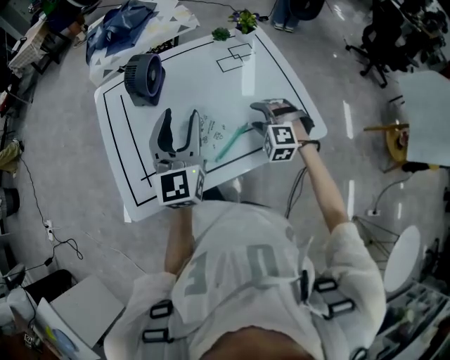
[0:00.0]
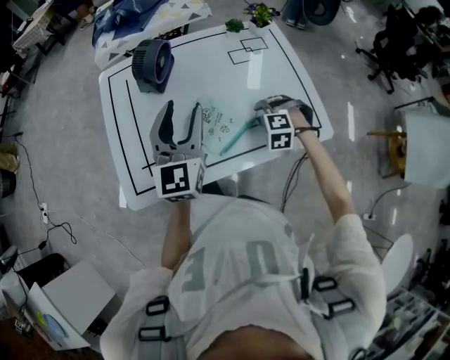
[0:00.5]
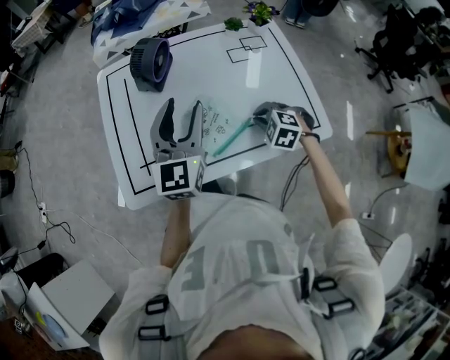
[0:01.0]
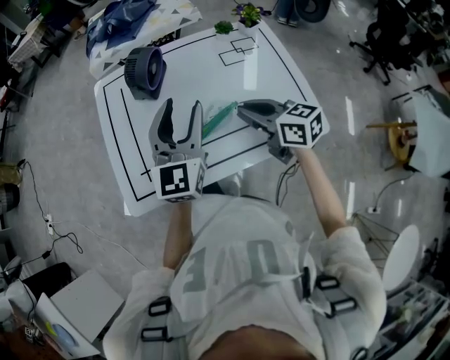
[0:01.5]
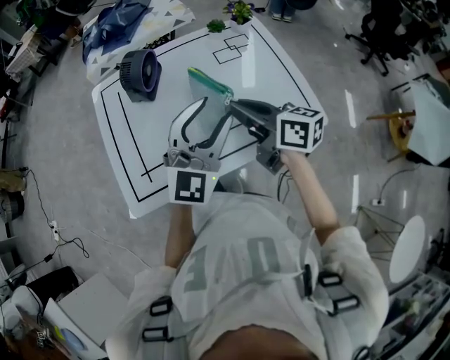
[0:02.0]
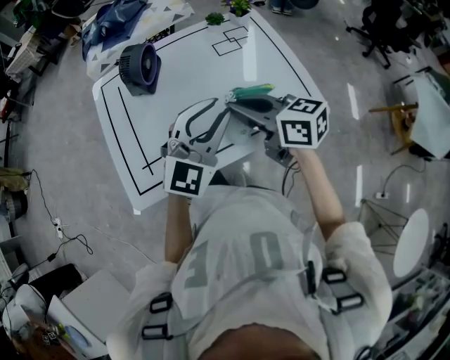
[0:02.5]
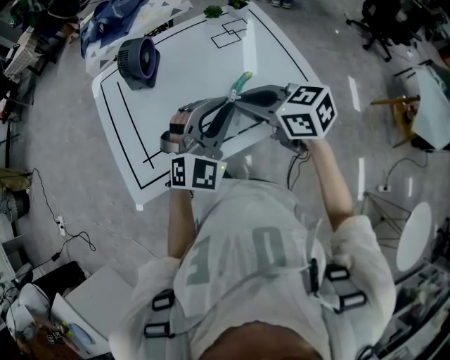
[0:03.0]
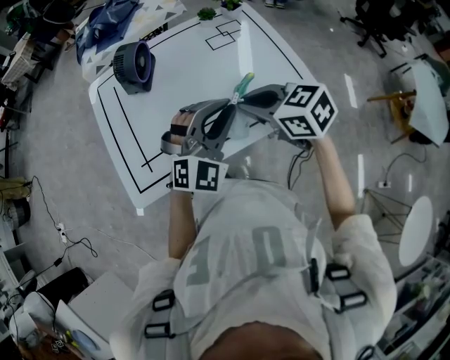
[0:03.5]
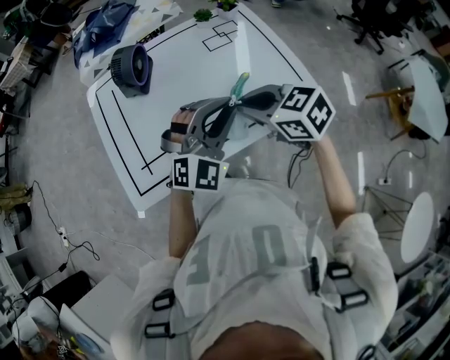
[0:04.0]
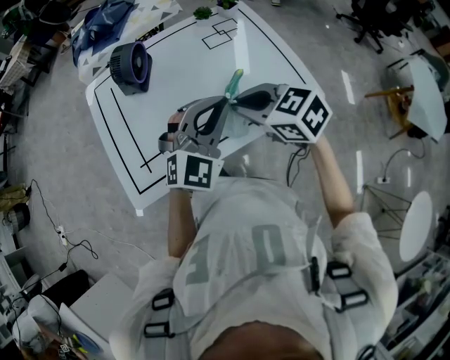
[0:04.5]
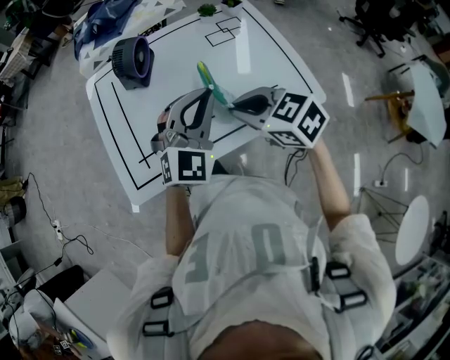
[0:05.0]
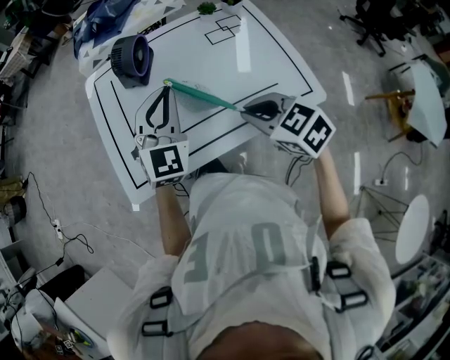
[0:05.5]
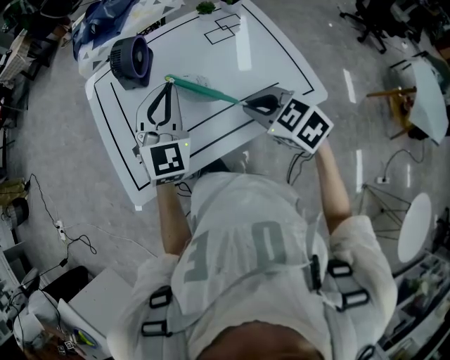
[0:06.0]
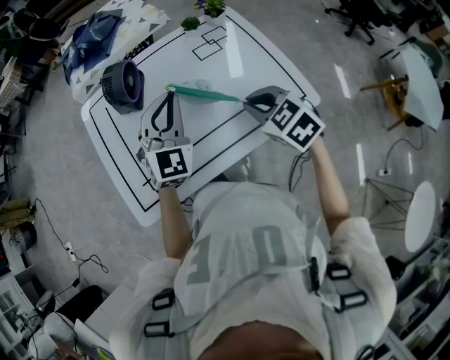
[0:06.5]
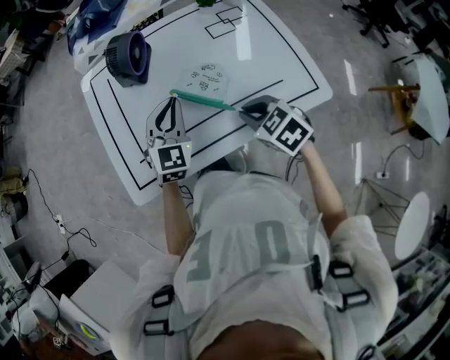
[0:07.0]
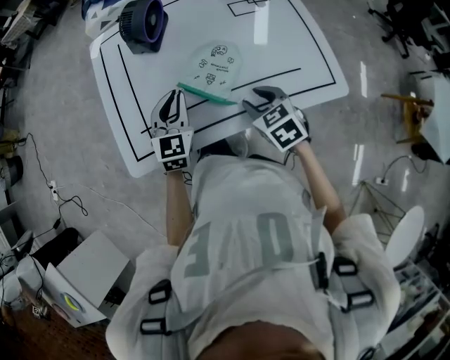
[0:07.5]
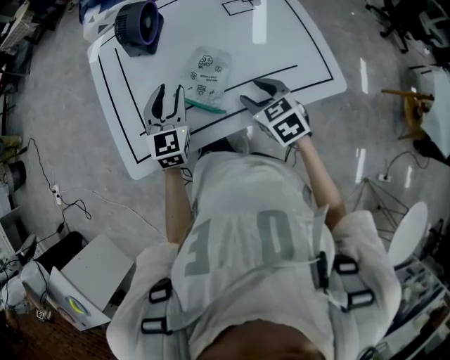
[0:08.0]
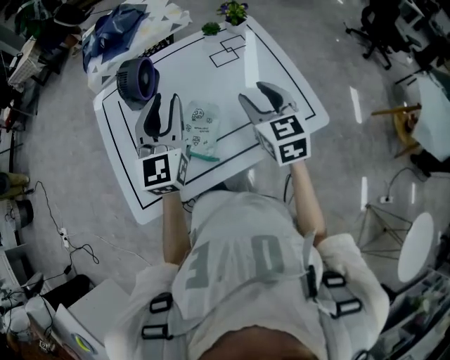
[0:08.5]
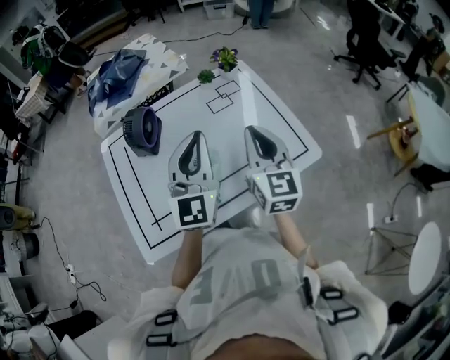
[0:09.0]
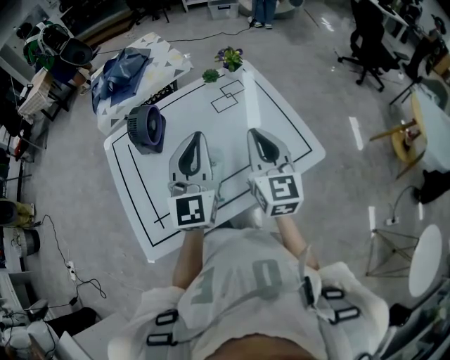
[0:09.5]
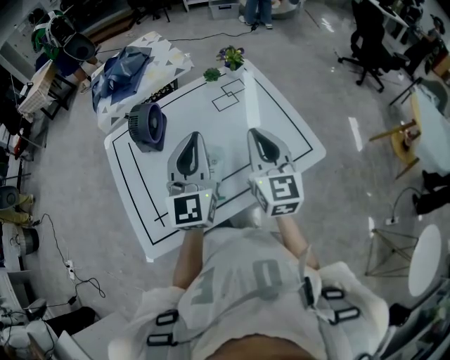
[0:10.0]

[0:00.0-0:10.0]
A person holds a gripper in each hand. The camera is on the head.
0:00.0 to 0:02.0: The right gripper shifts approximately 20 cm upward and to the left, rotates around the line of its fingers by roughly 90 degrees, clockwise from behind, and closes up; the left gripper travels to the right by approximately 10 cm, and turns by about 30 degrees.
0:02.0 to 0:04.0: The right gripper shifts by approximately 5 cm, and changes its angle by approximately 40 degrees; the left gripper shifts some 5 cm downward, rotates some 30 degrees, and closes.
0:04.0 to 0:06.0: The left gripper shifts about 15 cm to the left and forward, and turns by about 30 degrees.
0:06.0 to 0:08.0: Both grippers move downward, approximately 10 cm. The left gripper swivels about 20 degrees, and opens its fingers; the right gripper opens.
0:08.0 to 0:10.0: The left gripper shifts approximately 20 cm upward and to the right, swivels about 30 degrees, and closes up. The right gripper shifts about 20 cm upward, tilts its fingers about 40 degrees upward, and closes its fingers.

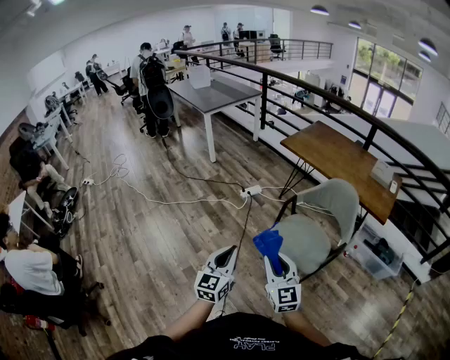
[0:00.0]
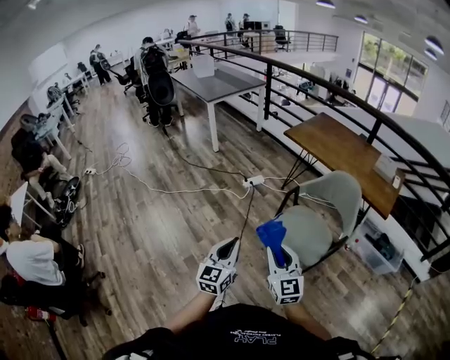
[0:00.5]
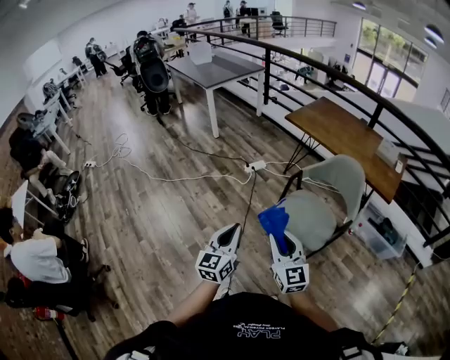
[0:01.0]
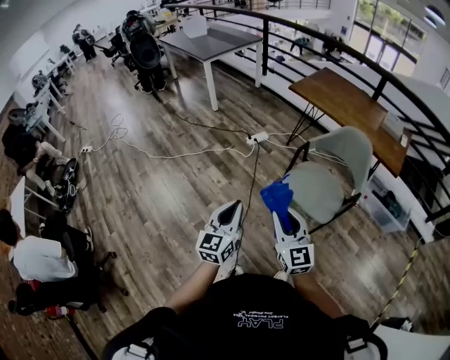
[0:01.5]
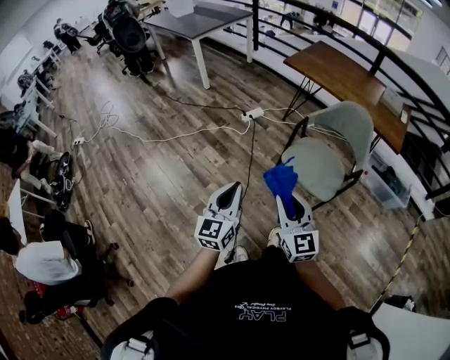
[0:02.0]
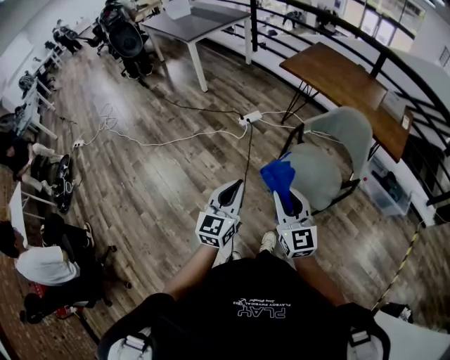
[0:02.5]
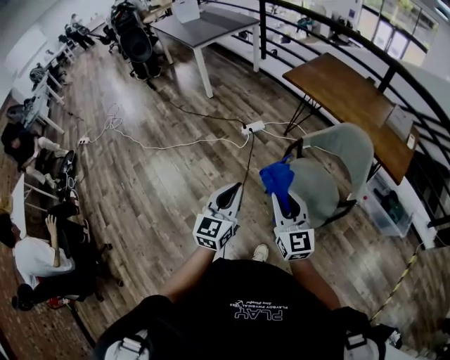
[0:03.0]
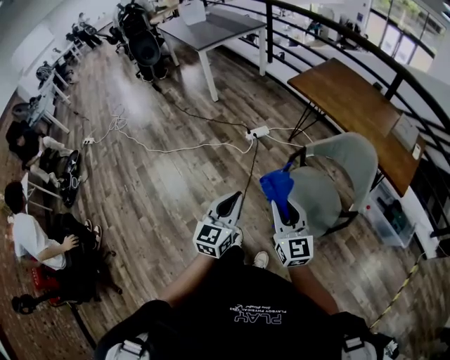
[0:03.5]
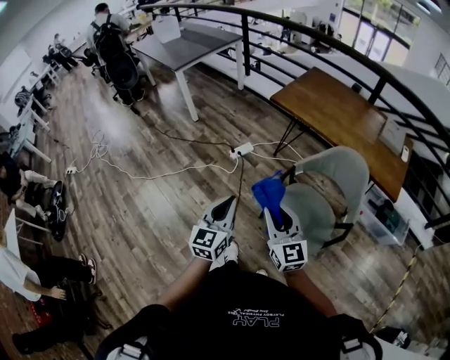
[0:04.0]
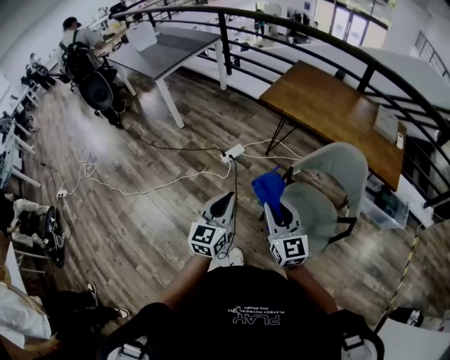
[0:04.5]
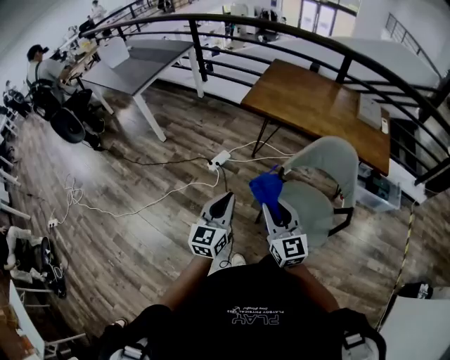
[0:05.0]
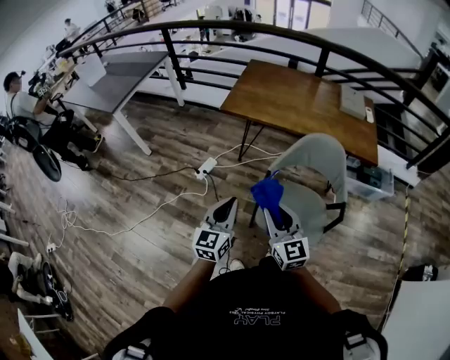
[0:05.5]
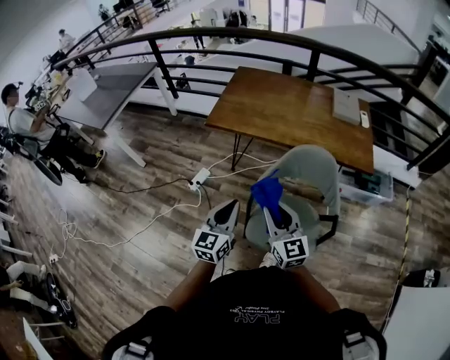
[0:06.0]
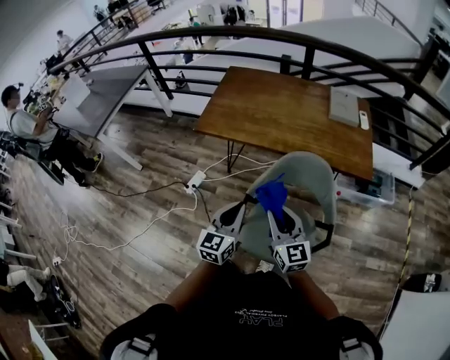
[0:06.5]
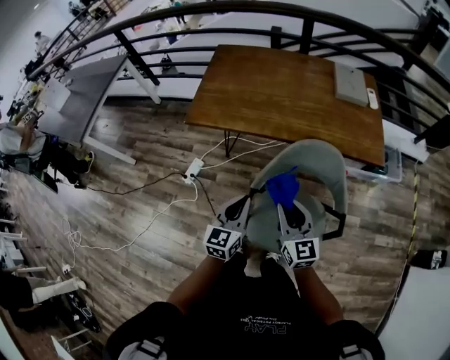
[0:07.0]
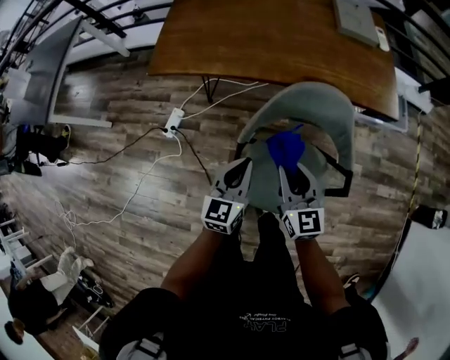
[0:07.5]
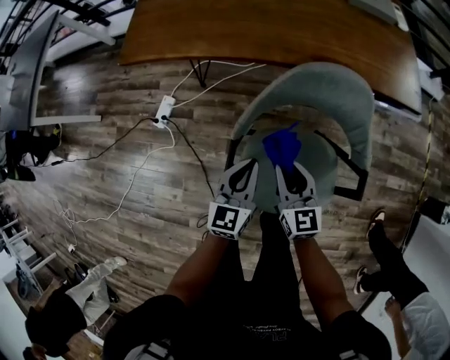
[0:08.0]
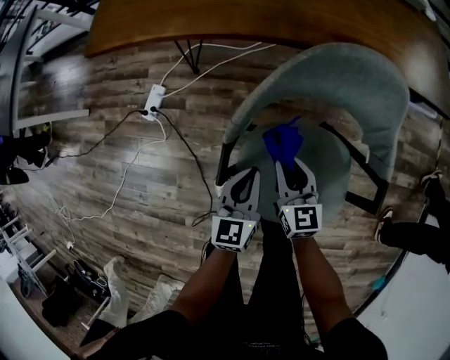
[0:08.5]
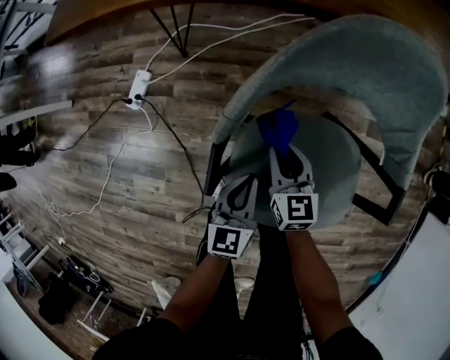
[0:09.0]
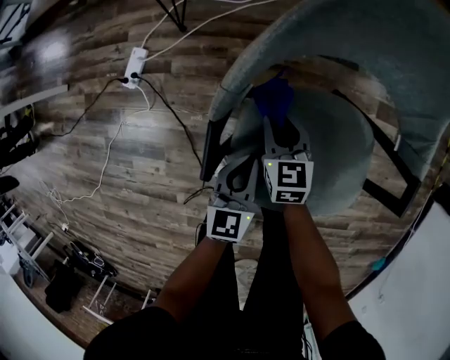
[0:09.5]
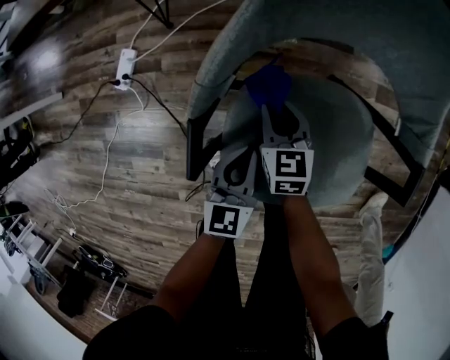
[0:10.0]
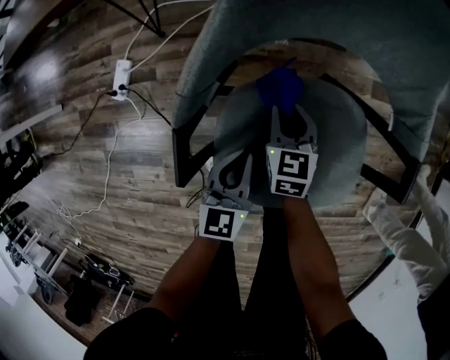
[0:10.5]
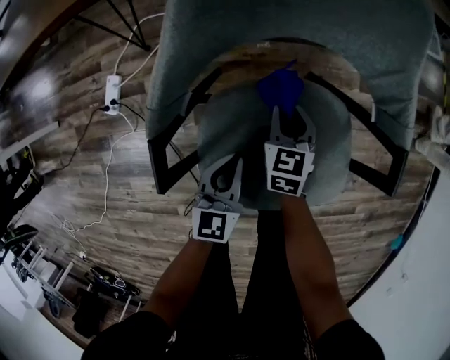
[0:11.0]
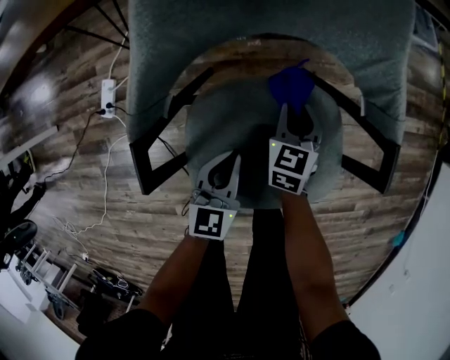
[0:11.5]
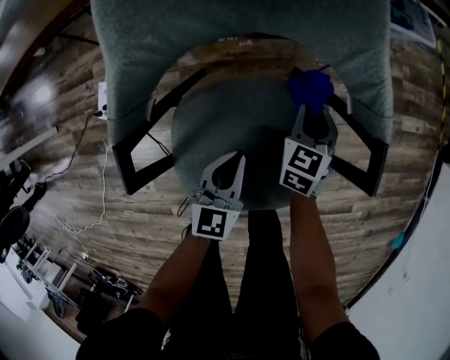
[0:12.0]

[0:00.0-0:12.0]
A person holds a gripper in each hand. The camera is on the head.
0:00.0 to 0:02.0: The grippers both shift to the left by about 5 cm.
0:02.0 to 0:04.0: Both grippers move forward, about 25 cm.
0:04.0 to 0:06.0: Both grippers move forward and to the right, some 20 cm. The left gripper turns by roughly 30 degrees; the right gripper rotates some 20 degrees.
0:06.0 to 0:08.0: The left gripper moves downward, forward and to the right, some 35 cm, while the right gripper goes roughly 30 cm downward and forward, and swivels roughly 20 degrees.
0:08.0 to 0:10.0: Both grippers move downward, some 25 cm.
0:10.0 to 0:12.0: The left gripper ends up some 15 cm from where it was. Meanwhile the right gripper changes place by roughly 25 cm, and changes its angle by about 30 degrees.

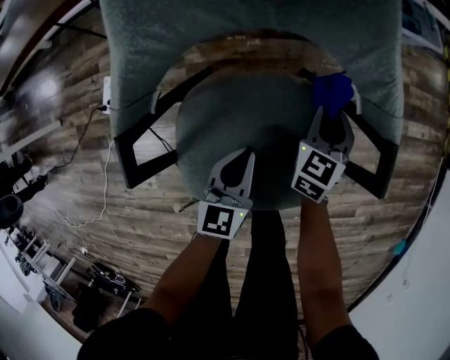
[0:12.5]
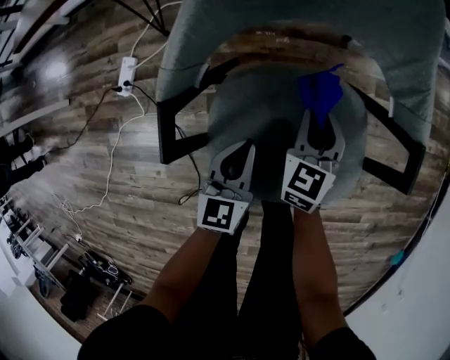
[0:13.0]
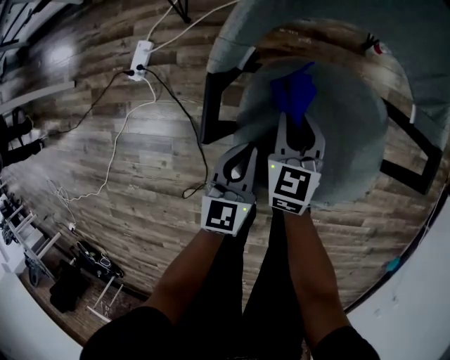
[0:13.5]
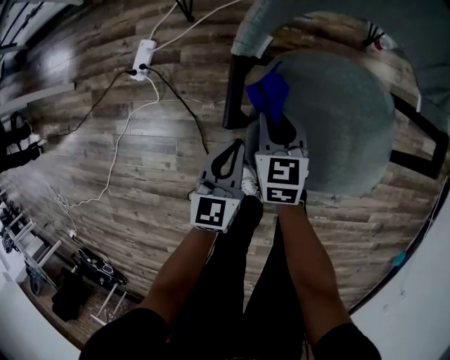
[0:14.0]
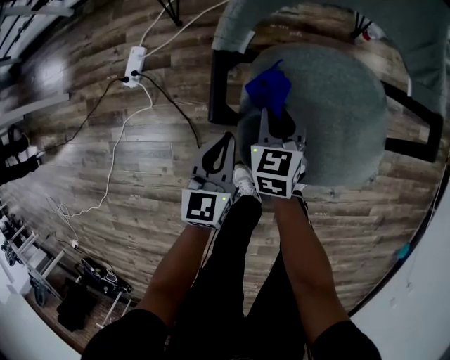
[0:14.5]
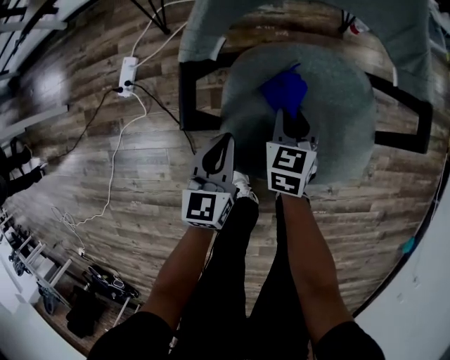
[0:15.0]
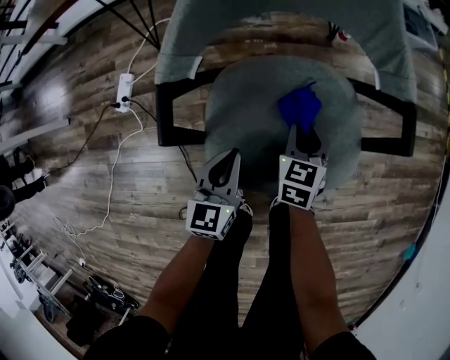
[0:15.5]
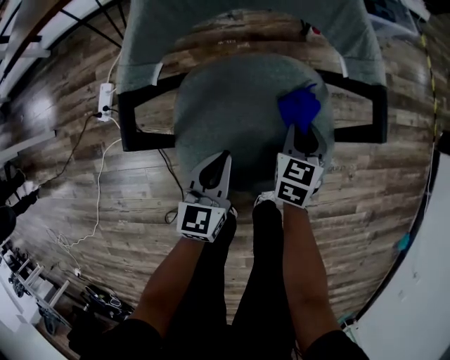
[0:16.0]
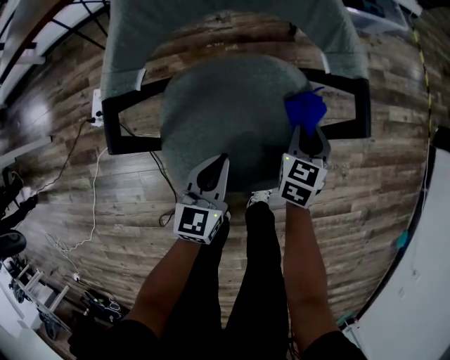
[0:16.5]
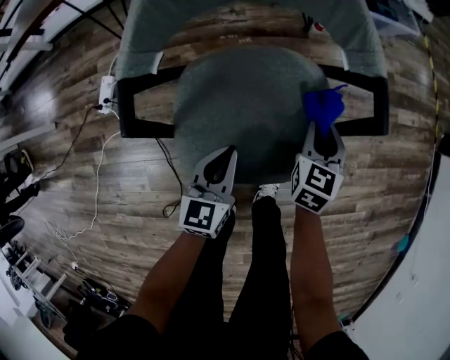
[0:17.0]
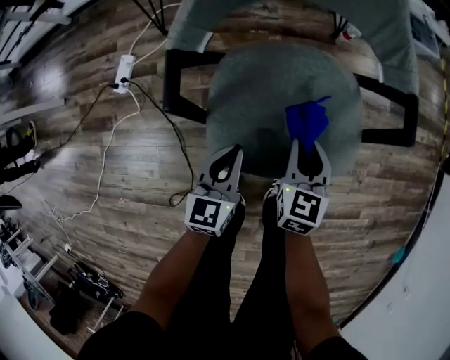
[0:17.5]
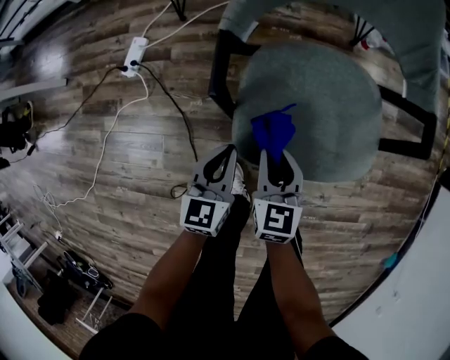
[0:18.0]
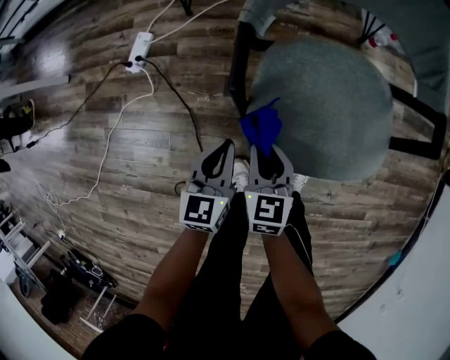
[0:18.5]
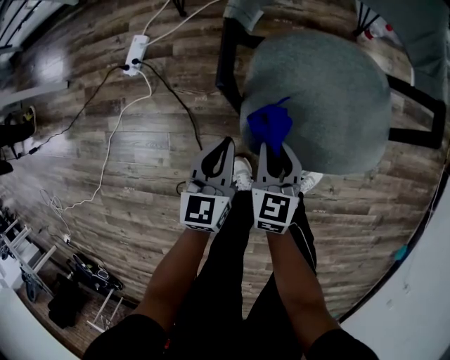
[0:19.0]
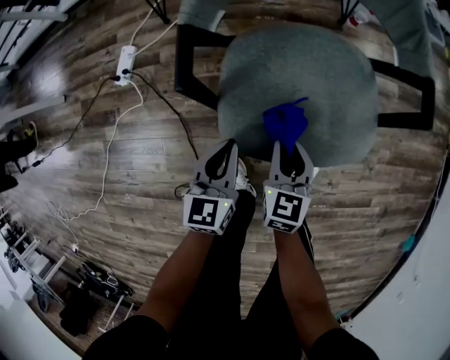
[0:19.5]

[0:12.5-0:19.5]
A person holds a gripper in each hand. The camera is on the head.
0:12.5 to 0:14.5: The right gripper shifts by some 30 cm, and swivels approximately 20 degrees. Meanwhile the left gripper ends up about 25 cm from where it was.
0:14.5 to 0:16.0: The right gripper shifts some 25 cm to the right; the left gripper is displaced to the right by some 15 cm.
0:16.0 to 0:17.5: The left gripper shifts approximately 5 cm backward, while the right gripper travels backward and to the left by some 10 cm.
0:17.5 to 0:19.5: The left gripper travels to the left by about 5 cm. The right gripper moves to the left and backward, about 10 cm.
